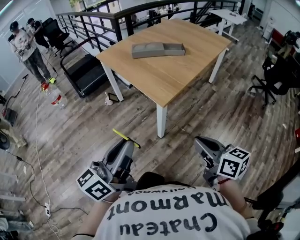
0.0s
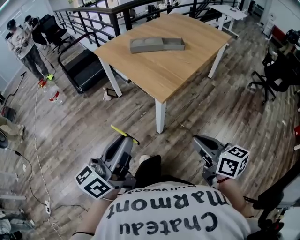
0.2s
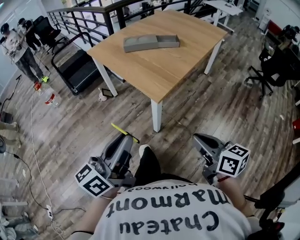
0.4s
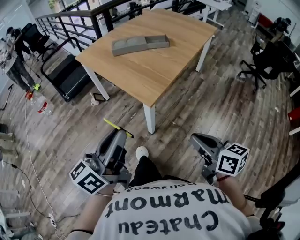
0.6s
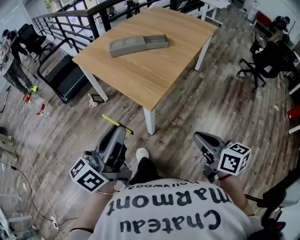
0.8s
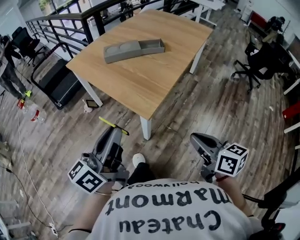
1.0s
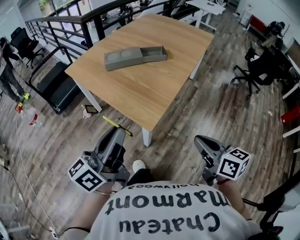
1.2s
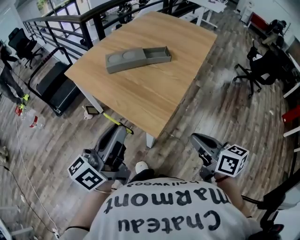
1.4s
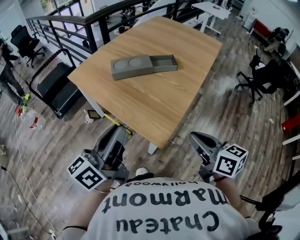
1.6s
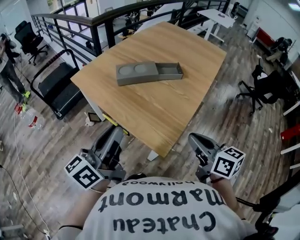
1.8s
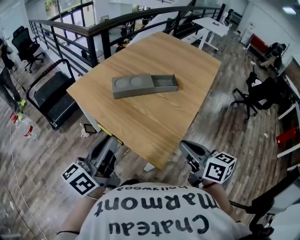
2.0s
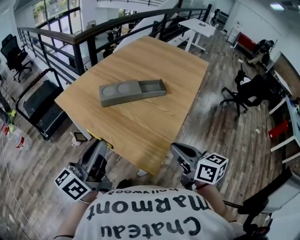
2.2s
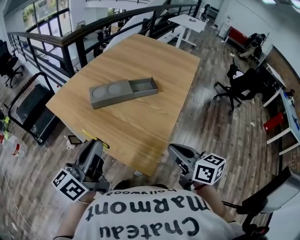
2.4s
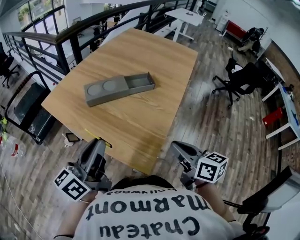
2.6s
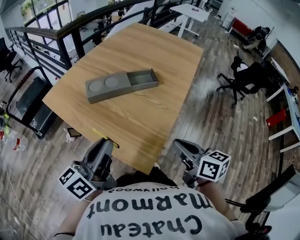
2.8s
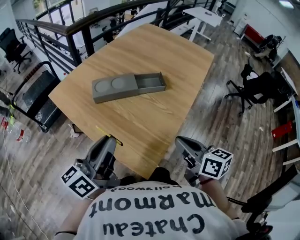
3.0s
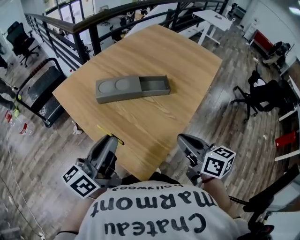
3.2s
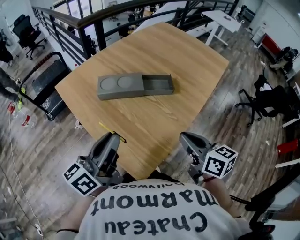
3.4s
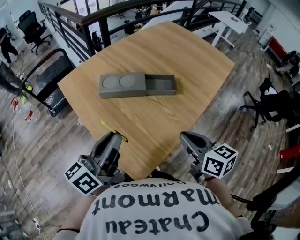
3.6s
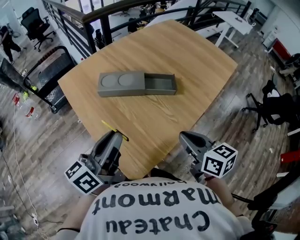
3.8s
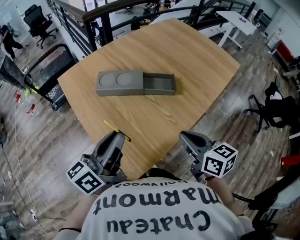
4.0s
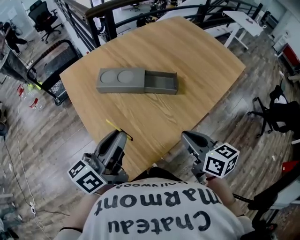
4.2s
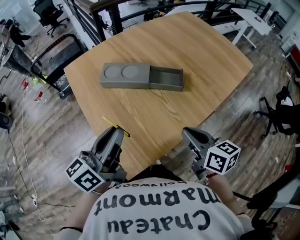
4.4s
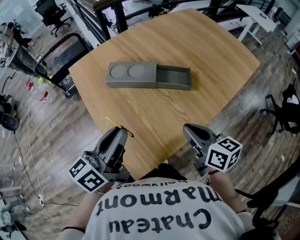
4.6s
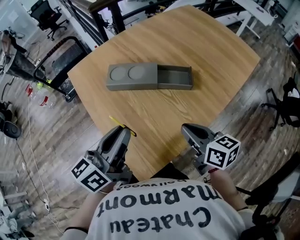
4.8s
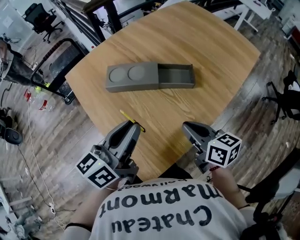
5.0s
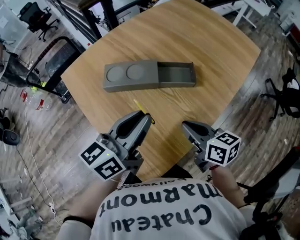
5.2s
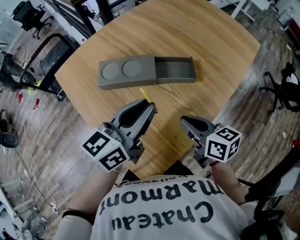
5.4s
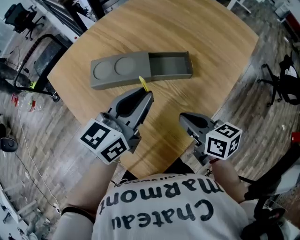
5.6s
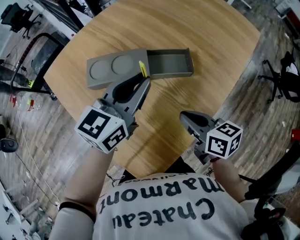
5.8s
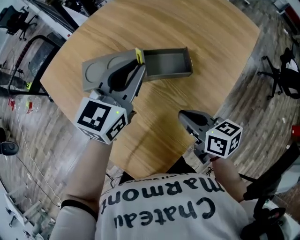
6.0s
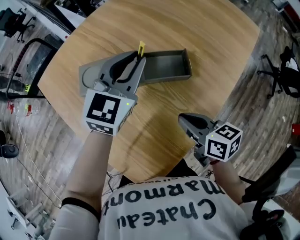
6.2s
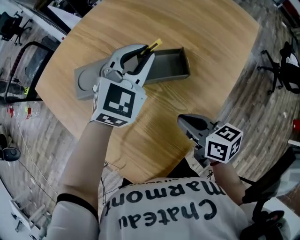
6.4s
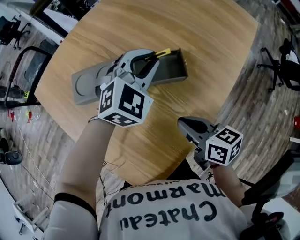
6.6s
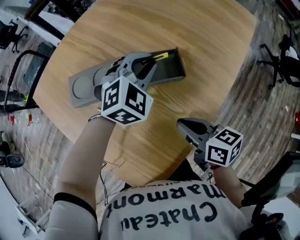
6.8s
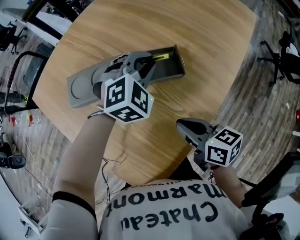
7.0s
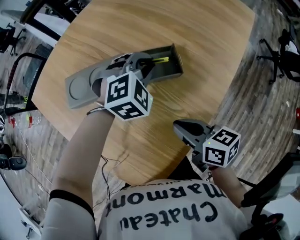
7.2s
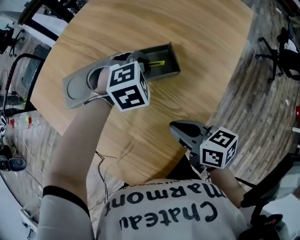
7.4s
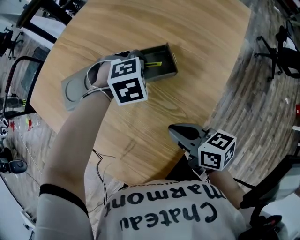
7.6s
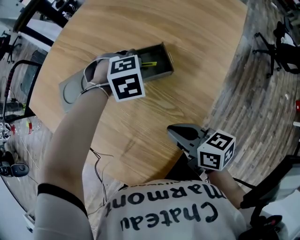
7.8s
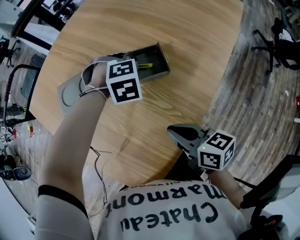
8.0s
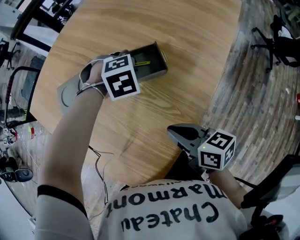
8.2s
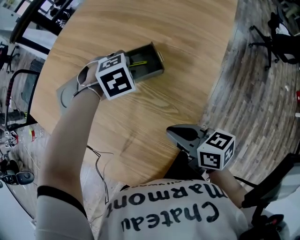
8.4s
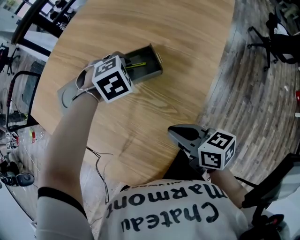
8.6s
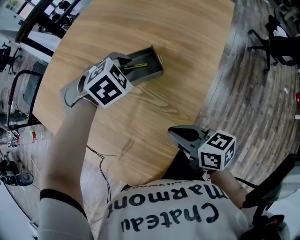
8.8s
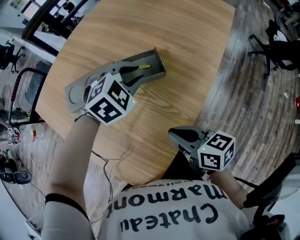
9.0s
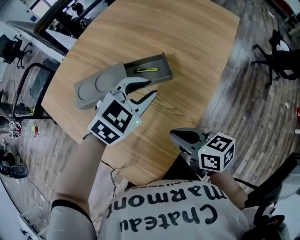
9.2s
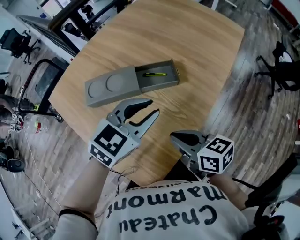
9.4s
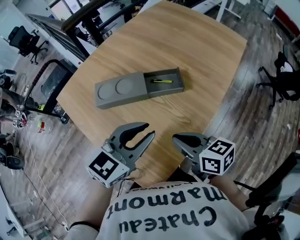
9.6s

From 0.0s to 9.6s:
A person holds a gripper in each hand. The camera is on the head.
From 0.0s to 1.6s: Both grippers move forward, approximately 30 cm.
From 1.6s to 3.2s: The grippers both shift forward by about 15 cm.
From 3.2s to 4.8s: The left gripper moves to the right, roughly 5 cm. The right gripper shifts roughly 10 cm forward and downward.
From 4.8s to 6.4s: The right gripper shifts about 10 cm downward and forward. Meanwhile the left gripper heads forward and to the right, covering some 30 cm, and twists roughly 60 degrees clockwise, seen from behind.
From 6.4s to 8.0s: The left gripper heads downward, covering approximately 15 cm, and tilts its fingers approximately 50 degrees downward.
From 8.0s to 9.6s: The left gripper is displaced backward and upward by approximately 30 cm, and points its fingers roughly 50 degrees further upward. The right gripper shifts approximately 10 cm upward.

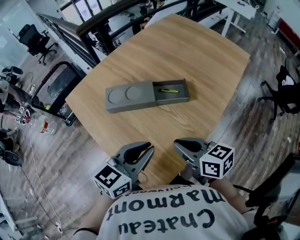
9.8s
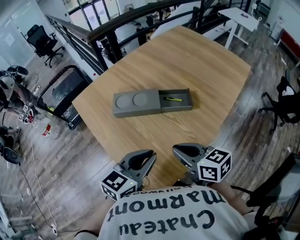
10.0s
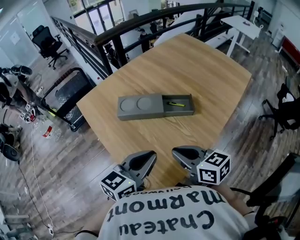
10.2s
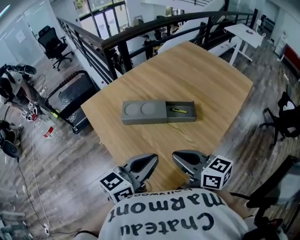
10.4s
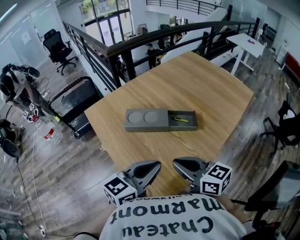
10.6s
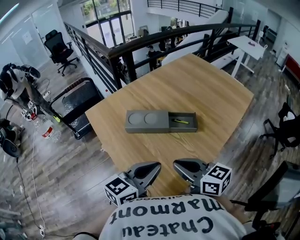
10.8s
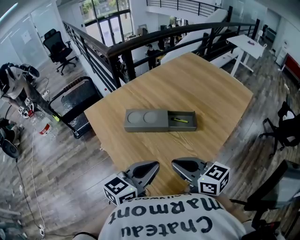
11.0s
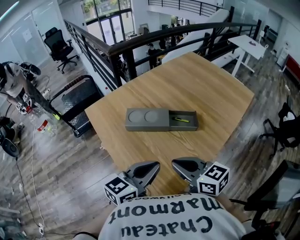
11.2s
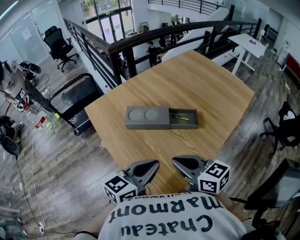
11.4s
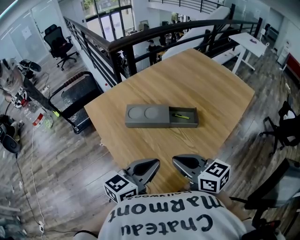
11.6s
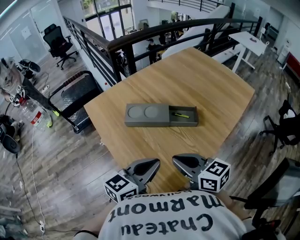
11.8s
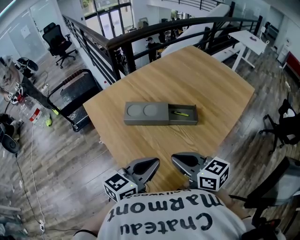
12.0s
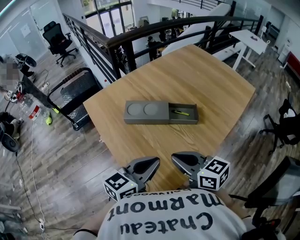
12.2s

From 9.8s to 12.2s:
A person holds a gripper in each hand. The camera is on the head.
From 9.8s to 11.0s: The right gripper moves upward and to the left, roughly 10 cm.
From 11.0s to 12.2s: The grippers stay close to where they were, moving slightly.

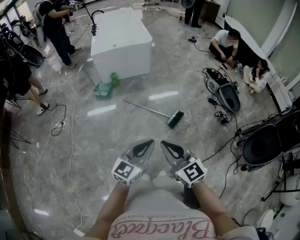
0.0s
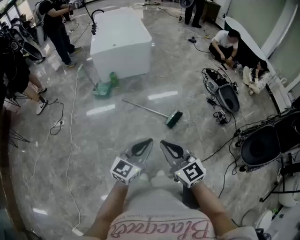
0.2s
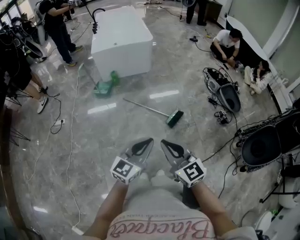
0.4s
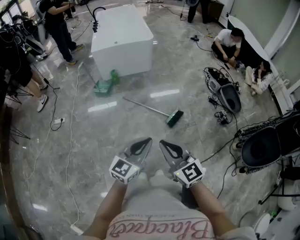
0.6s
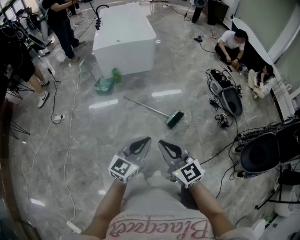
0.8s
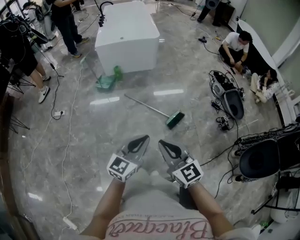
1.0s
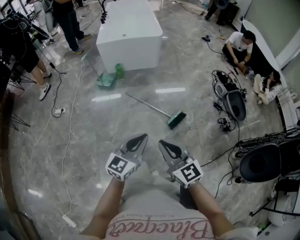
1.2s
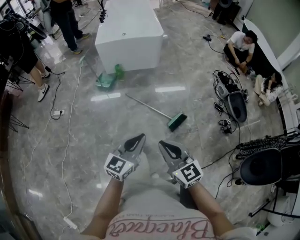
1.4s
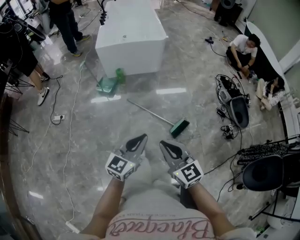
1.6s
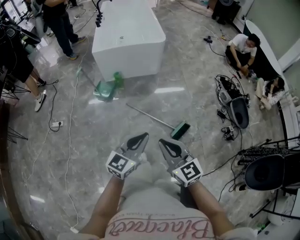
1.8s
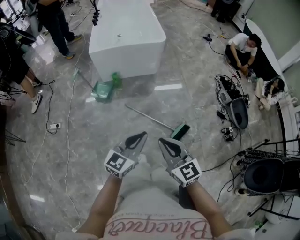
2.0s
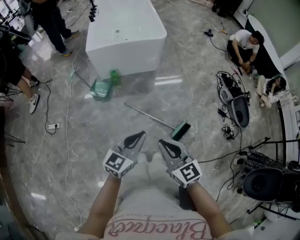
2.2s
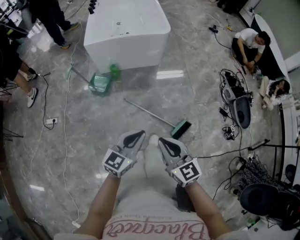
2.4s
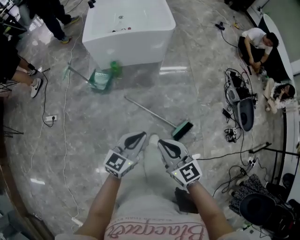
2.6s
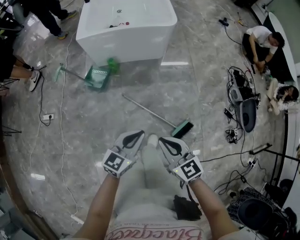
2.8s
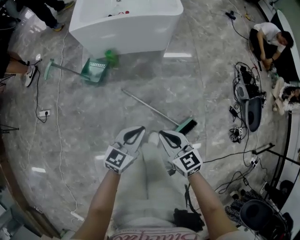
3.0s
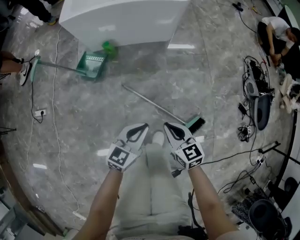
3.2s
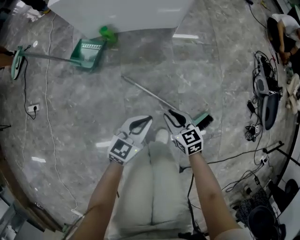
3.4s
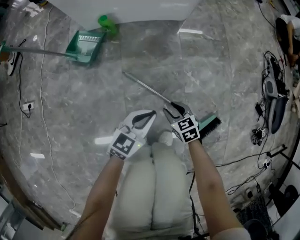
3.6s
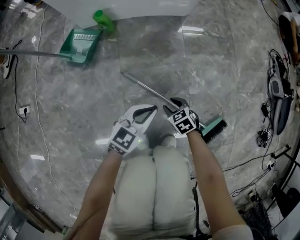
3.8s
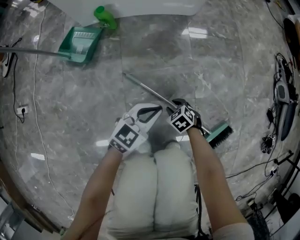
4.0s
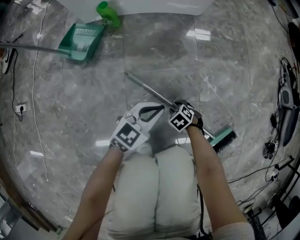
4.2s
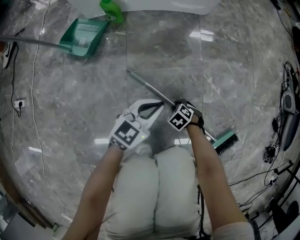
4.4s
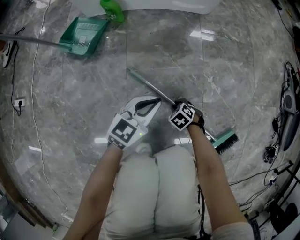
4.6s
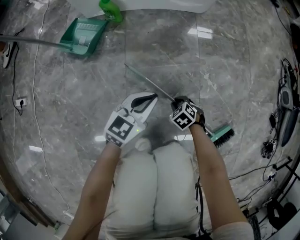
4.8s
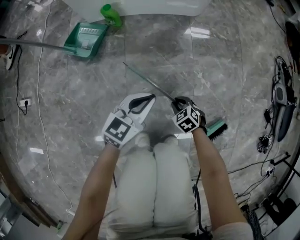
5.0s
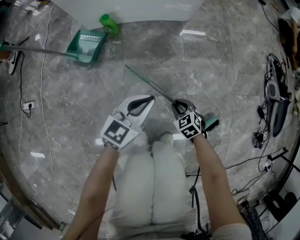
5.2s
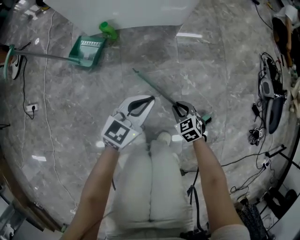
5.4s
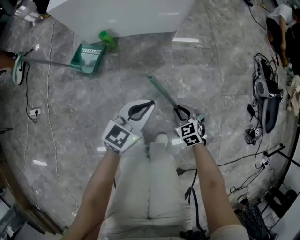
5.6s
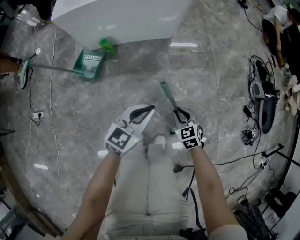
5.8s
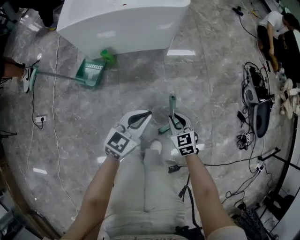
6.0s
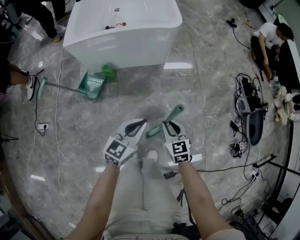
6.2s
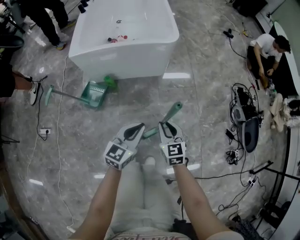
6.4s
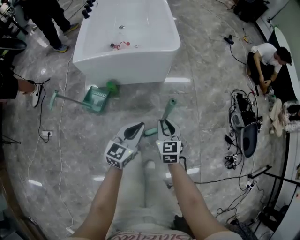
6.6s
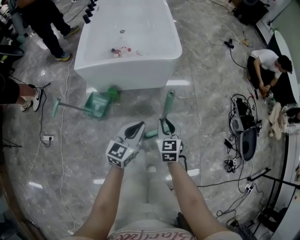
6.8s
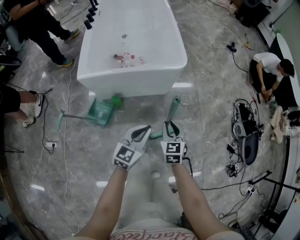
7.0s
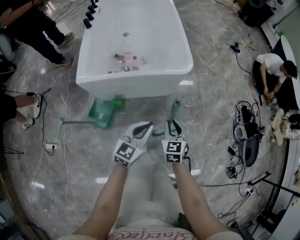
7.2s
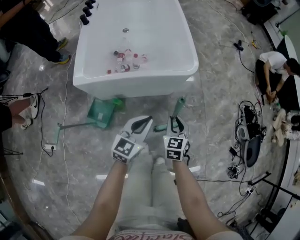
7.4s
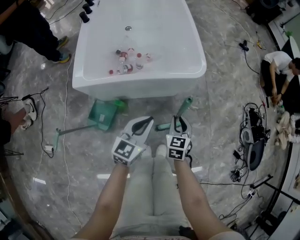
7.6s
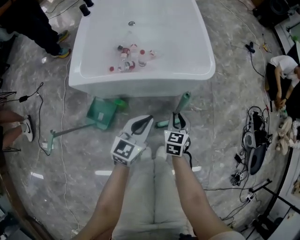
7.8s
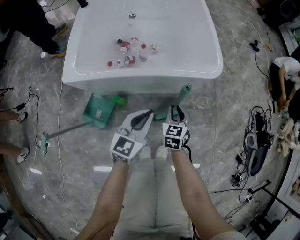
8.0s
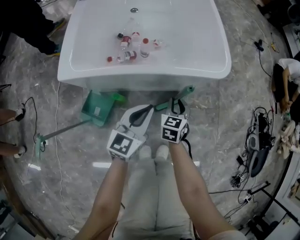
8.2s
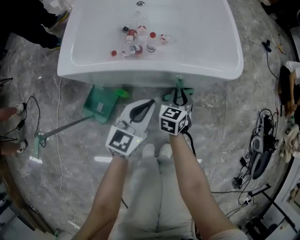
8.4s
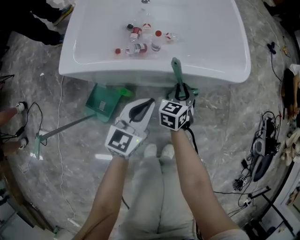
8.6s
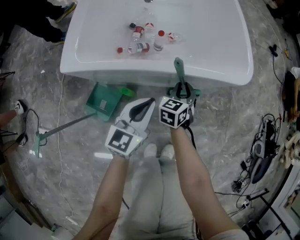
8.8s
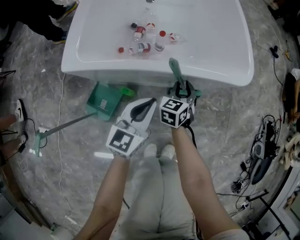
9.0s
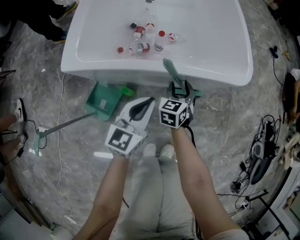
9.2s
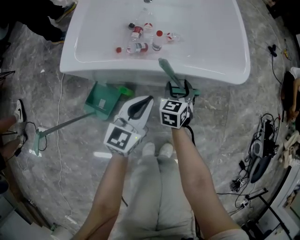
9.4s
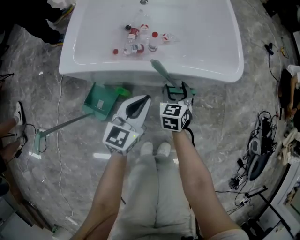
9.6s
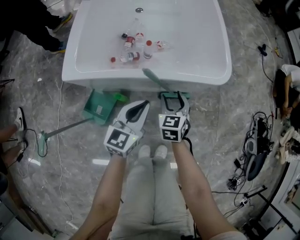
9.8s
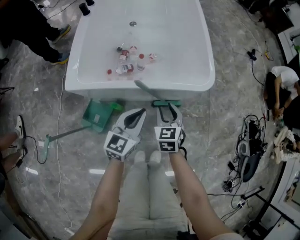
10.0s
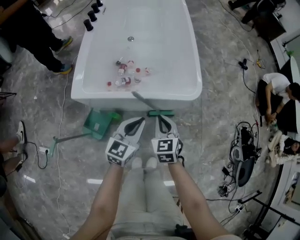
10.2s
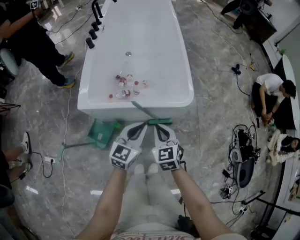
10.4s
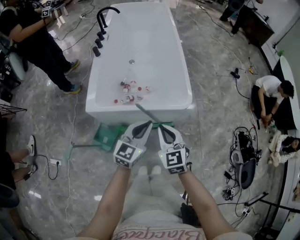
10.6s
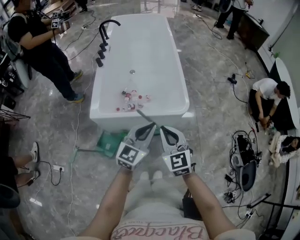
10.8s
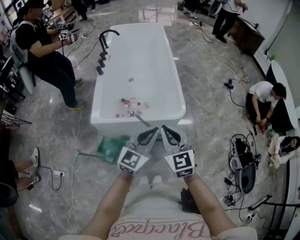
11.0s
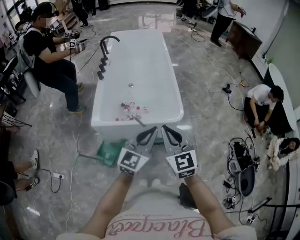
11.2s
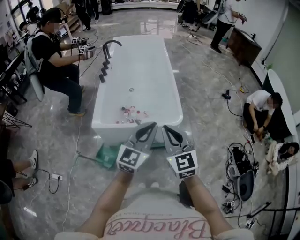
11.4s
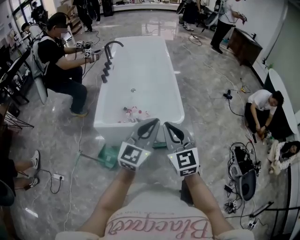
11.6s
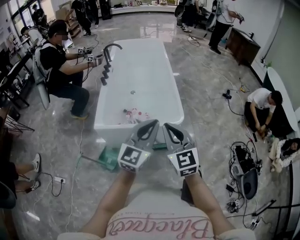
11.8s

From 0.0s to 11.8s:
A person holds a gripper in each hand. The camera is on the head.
From 0.0s to 1.4s: The grippers both shift forward by some 10 cm.
From 1.4s to 3.0s: Both grippers move forward and downward, about 35 cm. The right gripper turns by about 20 degrees.
From 3.0s to 4.4s: The left gripper heads downward, covering roughly 35 cm; the right gripper goes some 60 cm downward, tilts its fingers about 50 degrees downward, and opens.
From 4.4s to 6.0s: The grippers both shift upward by some 35 cm. The right gripper tips its fingers upward by roughly 40 degrees.
From 6.0s to 7.4s: The left gripper is displaced forward, to the left and upward by about 25 cm. The right gripper is displaced forward, upward and to the left by roughly 30 cm, and rotates approximately 20 degrees.
From 7.4s to 8.8s: The left gripper is displaced downward, to the left and forward by roughly 15 cm. The right gripper shifts roughly 25 cm downward, forward and to the left.
From 8.8s to 10.4s: The right gripper heads upward and backward, covering approximately 25 cm, rotates approximately 30 degrees, and opens and closes again; the left gripper travels upward and to the right by about 15 cm.
From 10.4s to 11.8s: Both grippers travel together upward, some 25 cm. The left gripper rotates some 20 degrees. The right gripper rotates roughly 30 degrees.
